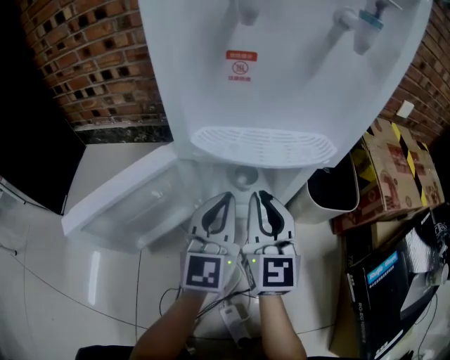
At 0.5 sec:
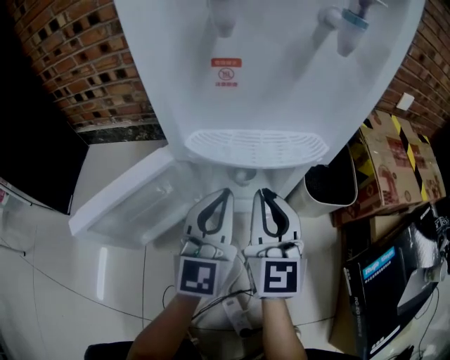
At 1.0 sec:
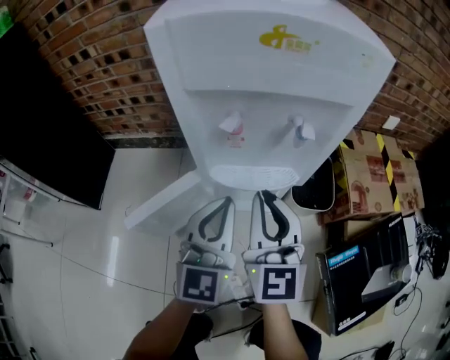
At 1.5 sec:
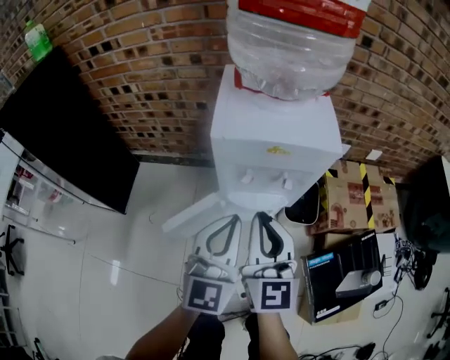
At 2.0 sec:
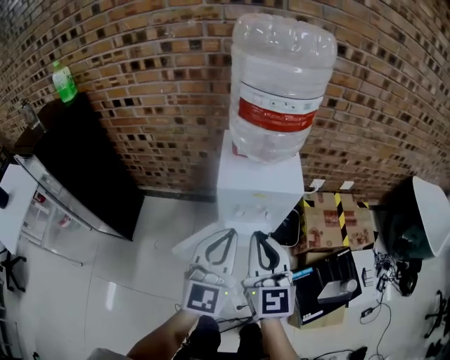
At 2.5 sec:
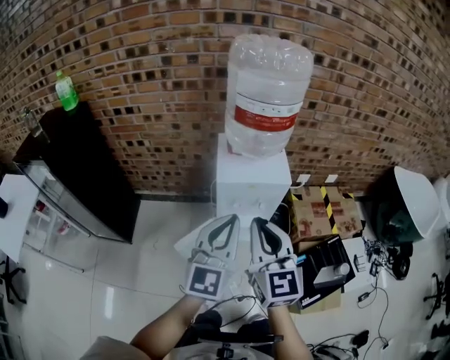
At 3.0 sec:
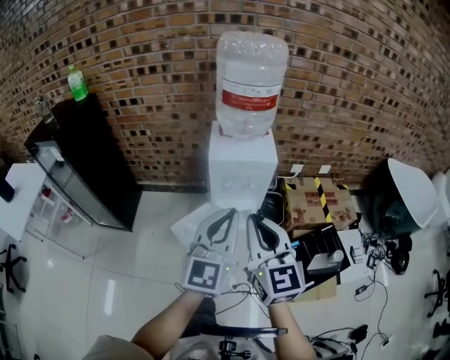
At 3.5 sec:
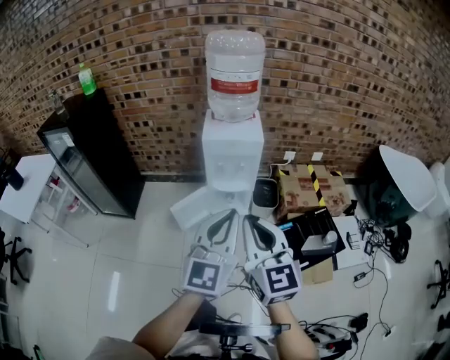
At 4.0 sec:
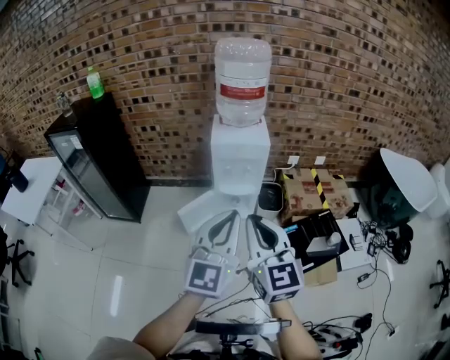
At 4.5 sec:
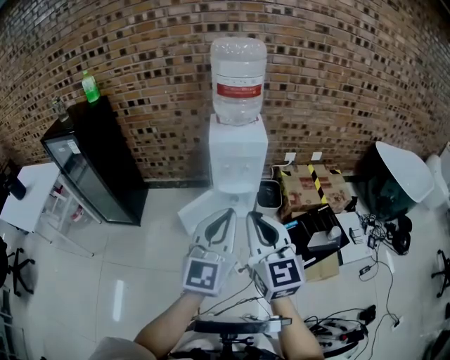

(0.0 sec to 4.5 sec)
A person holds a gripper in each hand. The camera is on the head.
0.0 sec - 2.0 sec: Both grippers travel together upward, roughly 60 cm.
2.0 sec - 4.5 sec: Both grippers move backward, roughly 30 cm.

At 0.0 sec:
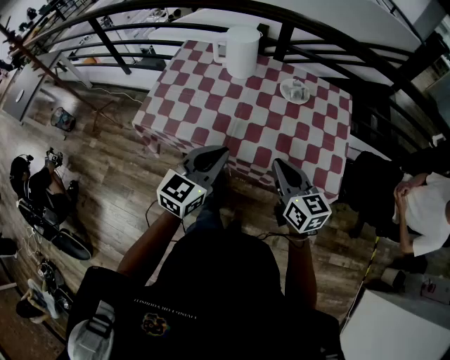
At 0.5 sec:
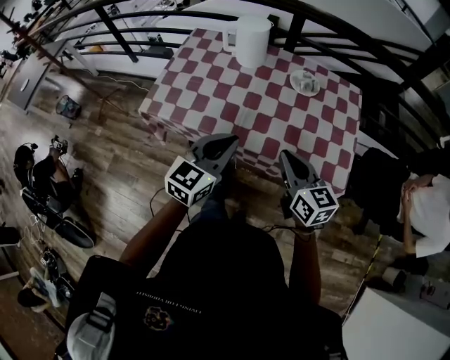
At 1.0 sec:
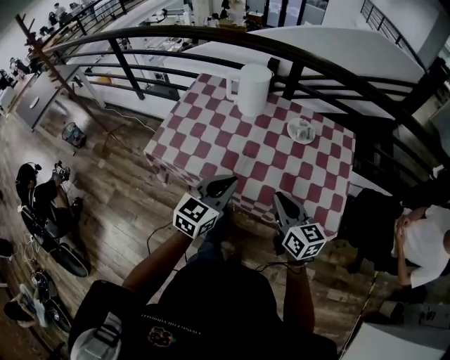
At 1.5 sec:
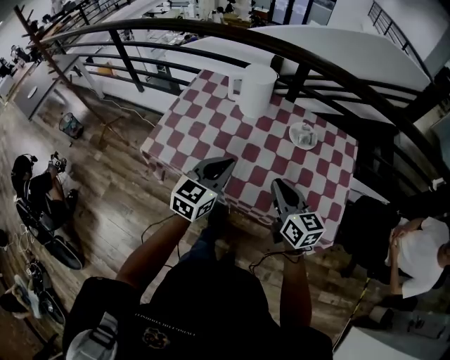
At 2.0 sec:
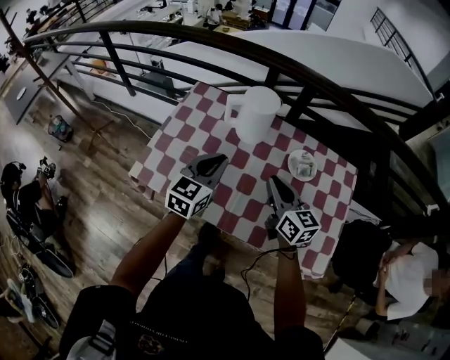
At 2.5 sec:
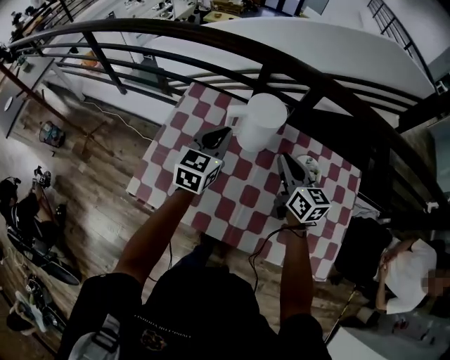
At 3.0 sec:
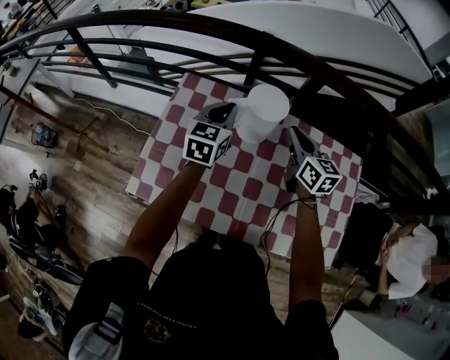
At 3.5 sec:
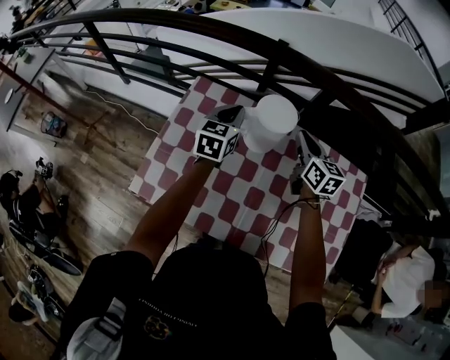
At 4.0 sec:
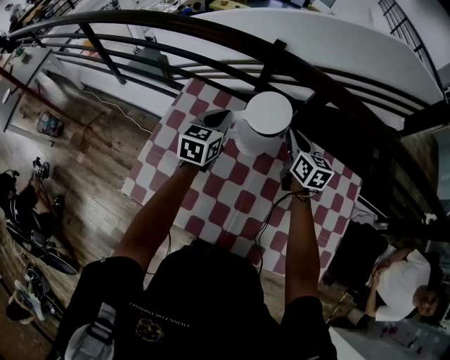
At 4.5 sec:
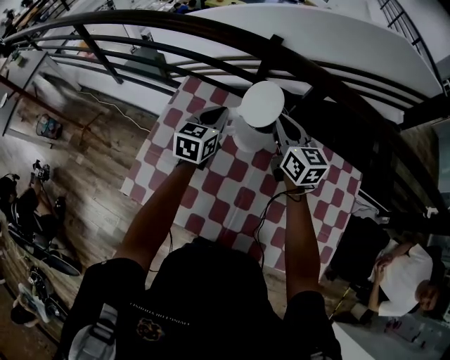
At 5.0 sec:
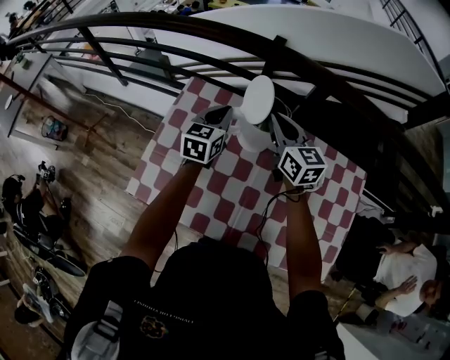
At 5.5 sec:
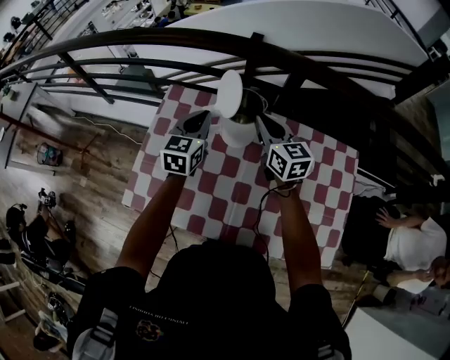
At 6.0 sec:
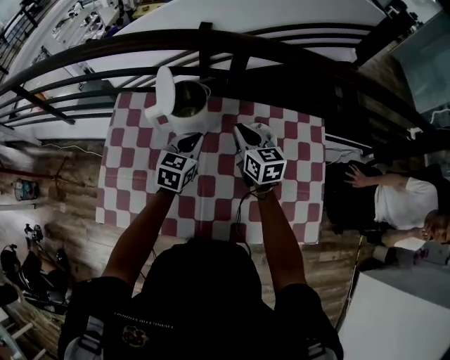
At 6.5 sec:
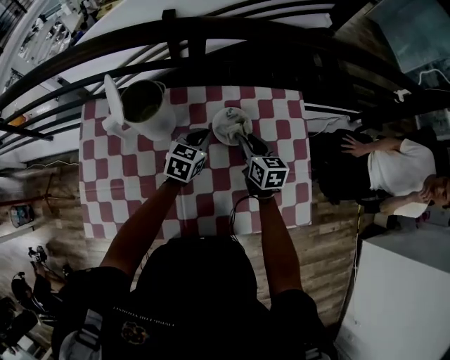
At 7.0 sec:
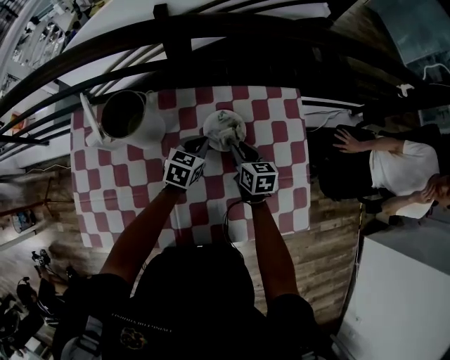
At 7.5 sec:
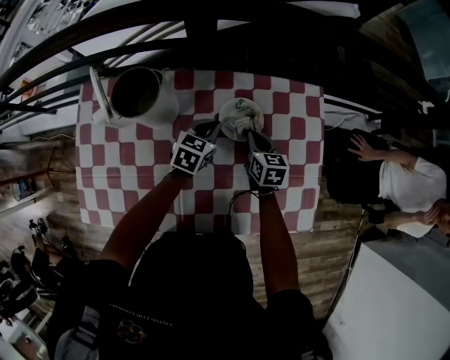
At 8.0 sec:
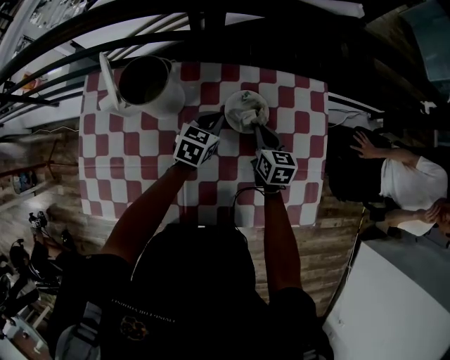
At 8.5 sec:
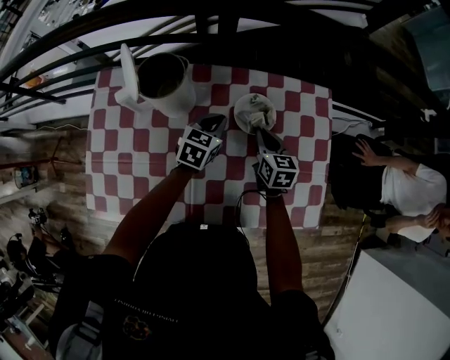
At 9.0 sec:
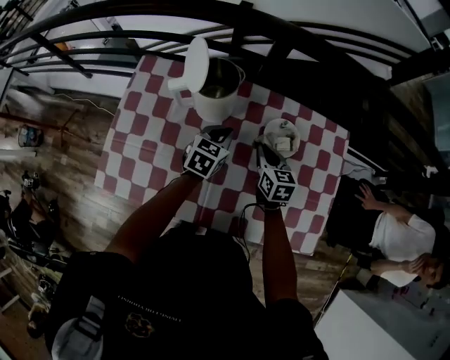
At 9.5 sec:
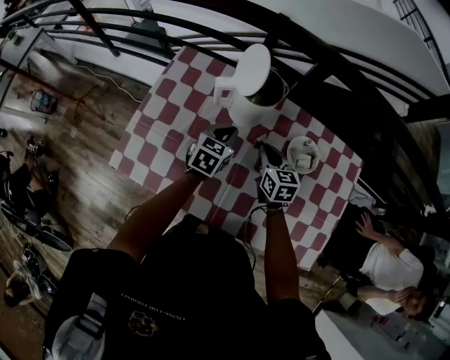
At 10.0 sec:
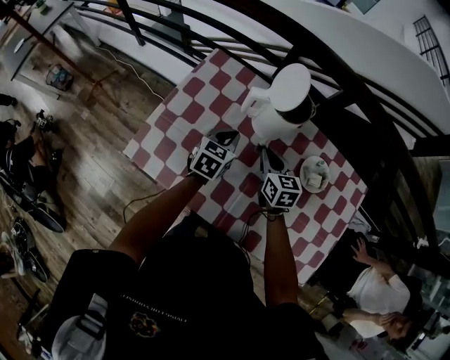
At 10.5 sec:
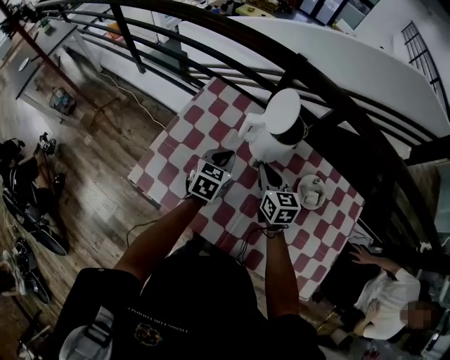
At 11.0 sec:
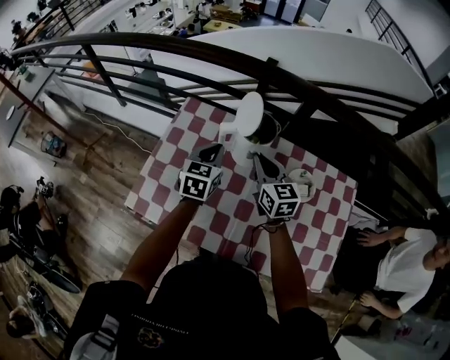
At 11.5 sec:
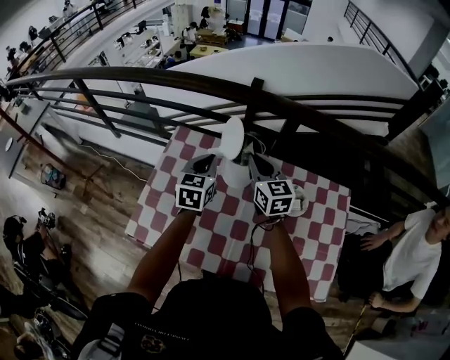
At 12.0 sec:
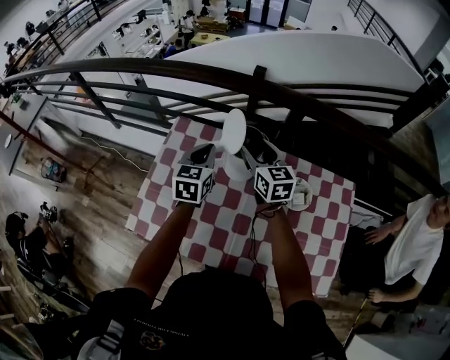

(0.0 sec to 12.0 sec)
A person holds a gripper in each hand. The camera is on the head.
0.0 sec - 2.0 sec: The two grippers go some 25 cm forward.
2.0 sec - 4.0 sec: Both grippers travel together forward, about 25 cm.
4.0 sec - 6.0 sec: The right gripper goes roughly 10 cm backward and to the right. Meanwhile the left gripper moves to the right and backward, some 20 cm, and turns by some 20 degrees.
6.0 sec - 8.0 sec: The left gripper heads to the right, downward and forward, covering about 15 cm. The right gripper travels to the right and downward by roughly 20 cm, and changes its angle by approximately 20 degrees.
8.0 sec - 10.0 sec: The right gripper moves about 30 cm, and rotates approximately 30 degrees, while the left gripper changes place by about 30 cm, and turns by about 30 degrees.
10.0 sec - 12.0 sec: The grippers both shift upward and forward by approximately 20 cm. The right gripper opens.

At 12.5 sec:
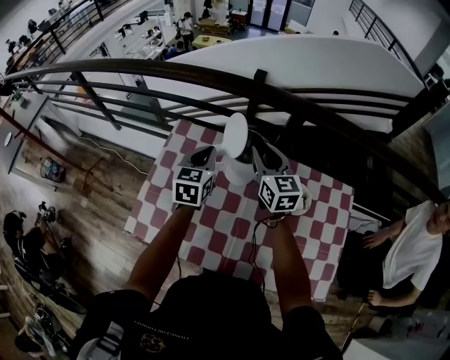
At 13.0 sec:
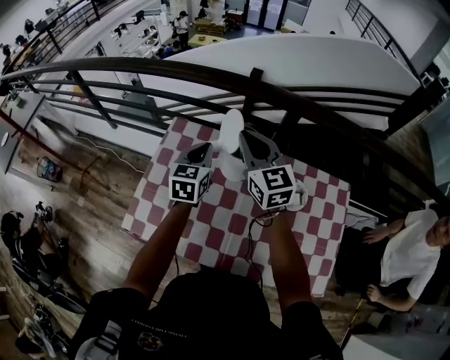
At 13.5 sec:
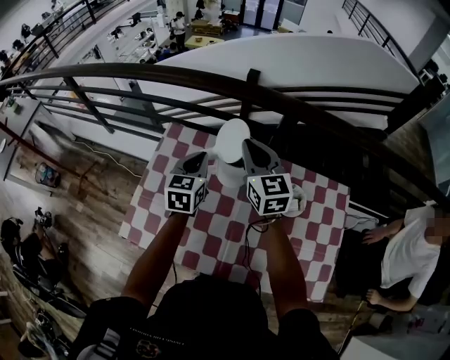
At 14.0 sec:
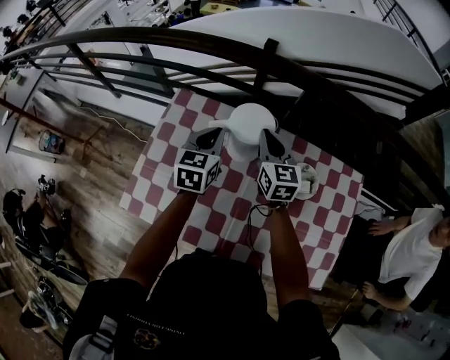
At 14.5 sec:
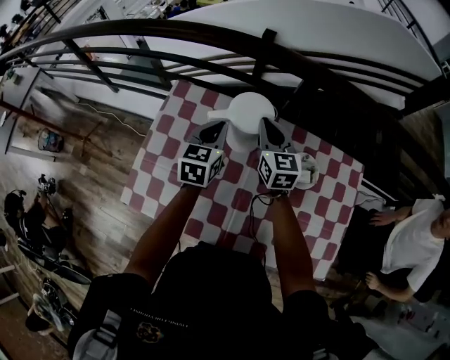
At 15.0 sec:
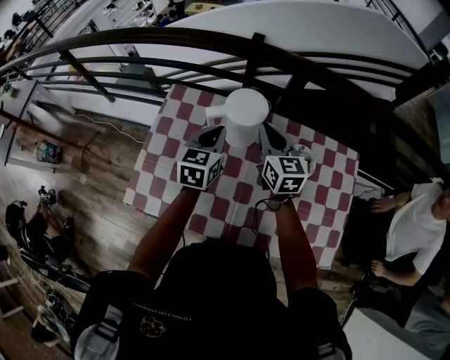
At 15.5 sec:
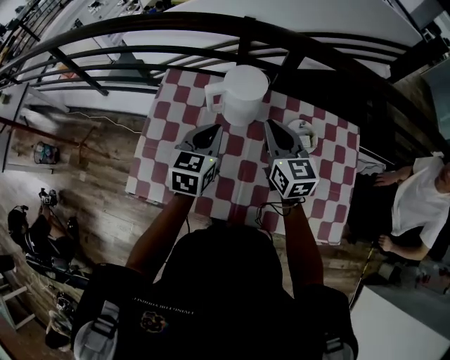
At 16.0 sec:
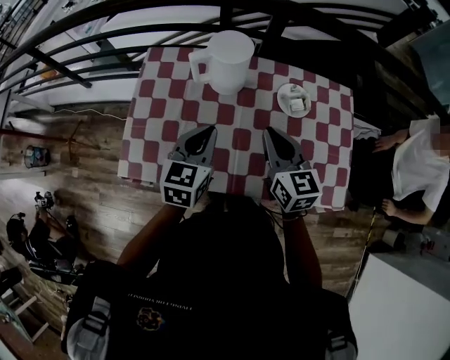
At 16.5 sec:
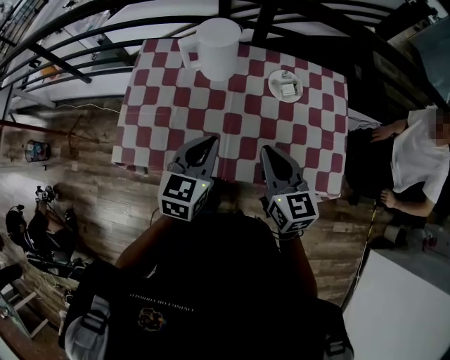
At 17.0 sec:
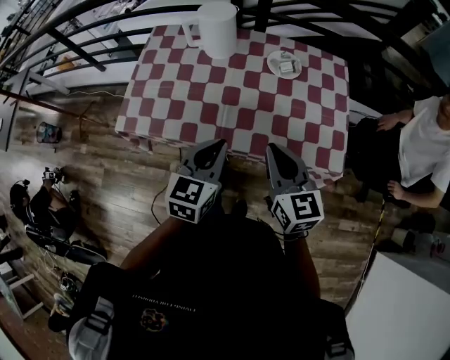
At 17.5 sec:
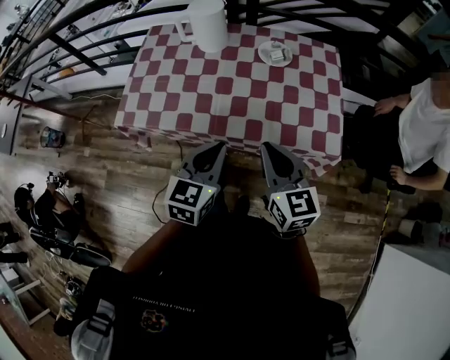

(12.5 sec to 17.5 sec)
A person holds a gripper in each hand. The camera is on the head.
12.5 sec - 15.0 sec: The left gripper changes place by about 5 cm. Meanwhile the right gripper moves approximately 5 cm upward and comes back, and closes.
15.0 sec - 17.5 sec: Both grippers are carried backward, about 50 cm.

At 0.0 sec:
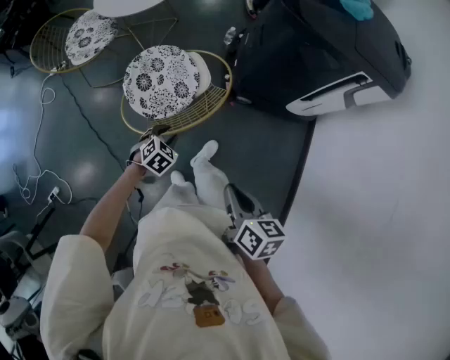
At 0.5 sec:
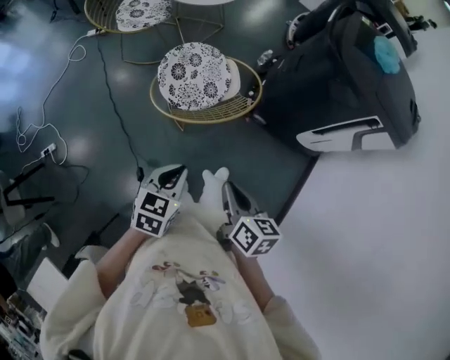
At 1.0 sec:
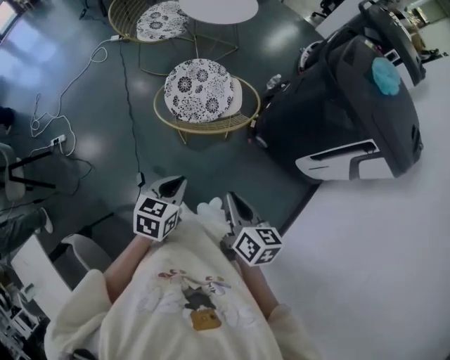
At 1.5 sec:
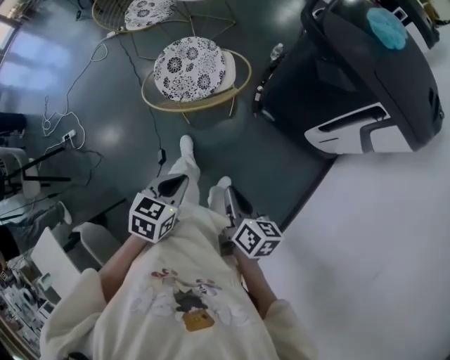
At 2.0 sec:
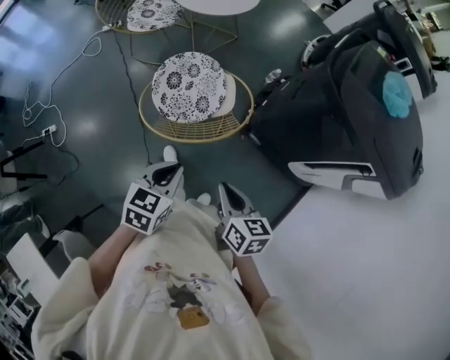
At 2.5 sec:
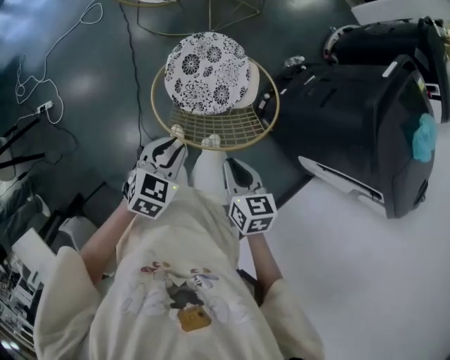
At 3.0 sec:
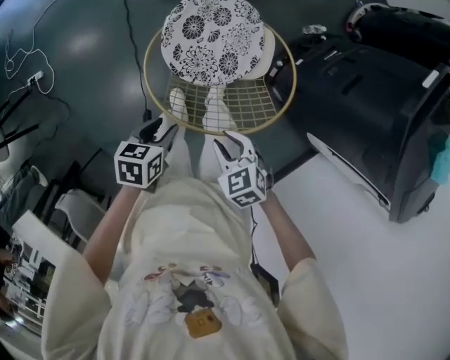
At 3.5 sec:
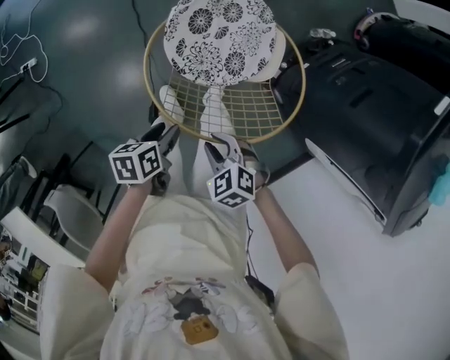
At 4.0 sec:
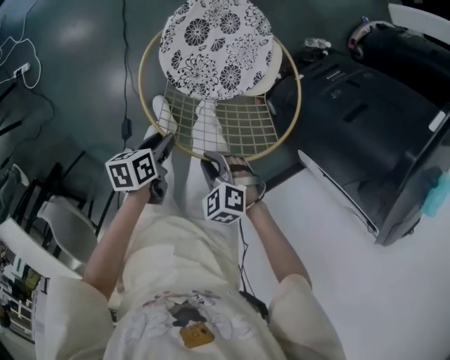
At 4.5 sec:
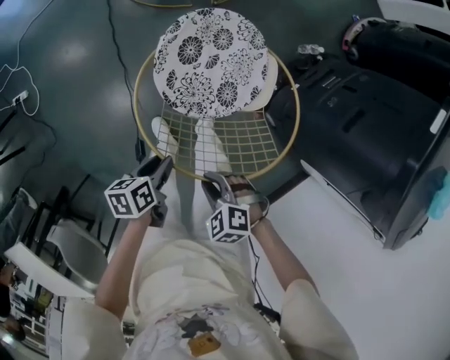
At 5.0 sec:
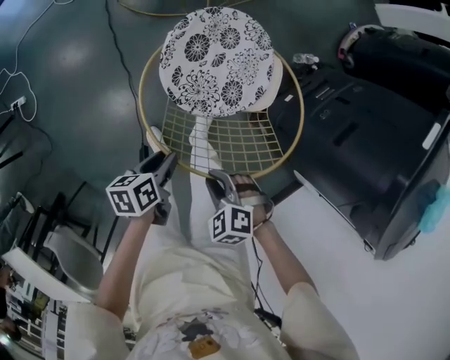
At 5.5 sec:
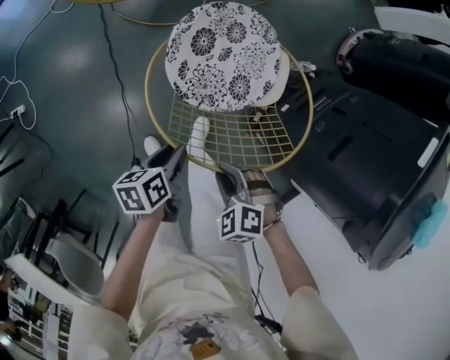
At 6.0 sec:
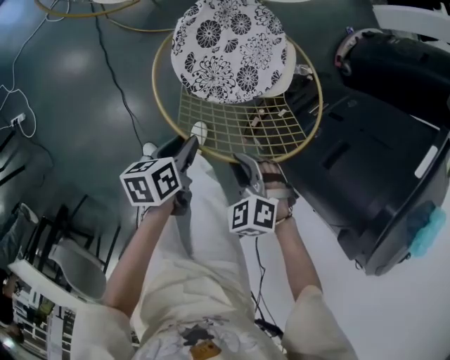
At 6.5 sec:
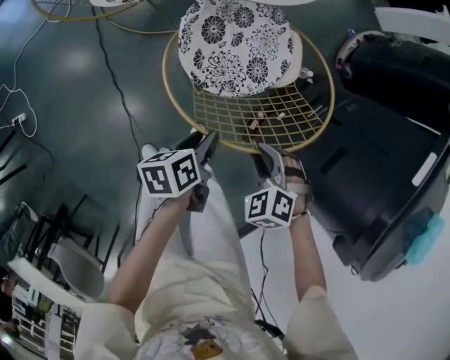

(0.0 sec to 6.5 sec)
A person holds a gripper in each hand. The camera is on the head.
0.0 sec - 2.0 sec: The left gripper heads upward, covering some 20 cm, rolls counterclockwise, seen from behind, by roughly 40 degrees, and closes. Meanwhile the right gripper swings left and right, about 20 cm each way, with 2 reversals, and rotates about 30 degrees.
2.0 sec - 4.5 sec: Both grippers travel together downward, about 25 cm. The right gripper twists approximately 70 degrees counterclockwise, seen from behind. The left gripper rolls counterclockwise, seen from behind, by roughly 60 degrees, and opens its fingers.
4.5 sec - 6.5 sec: The right gripper turns by roughly 30 degrees.
